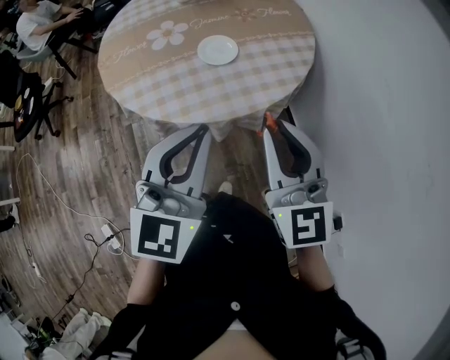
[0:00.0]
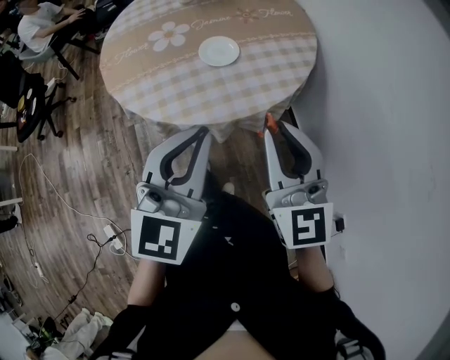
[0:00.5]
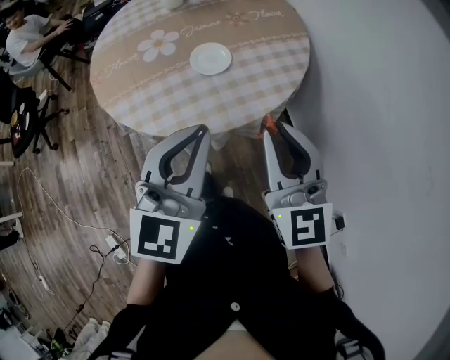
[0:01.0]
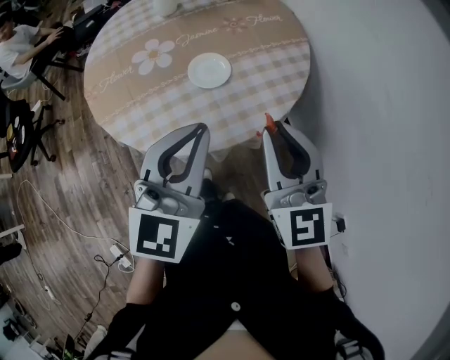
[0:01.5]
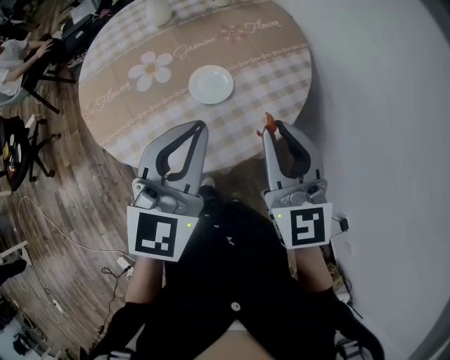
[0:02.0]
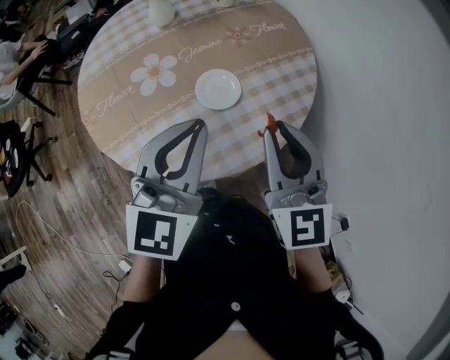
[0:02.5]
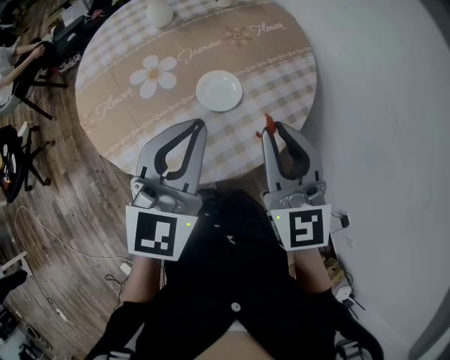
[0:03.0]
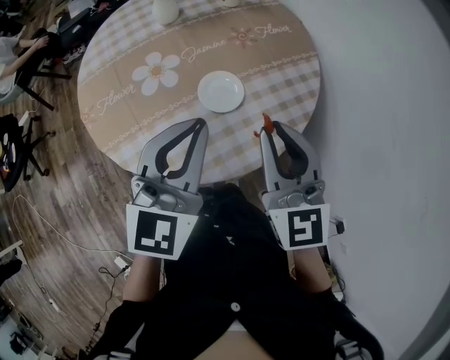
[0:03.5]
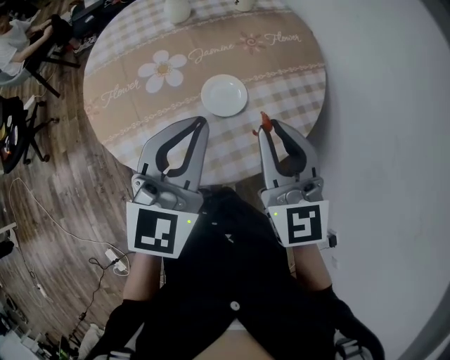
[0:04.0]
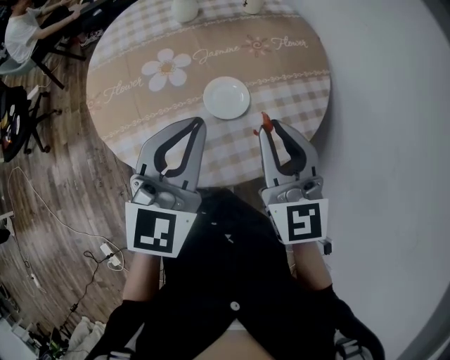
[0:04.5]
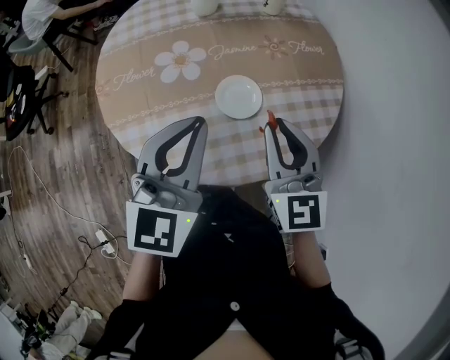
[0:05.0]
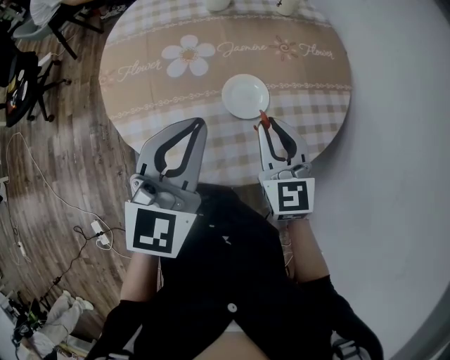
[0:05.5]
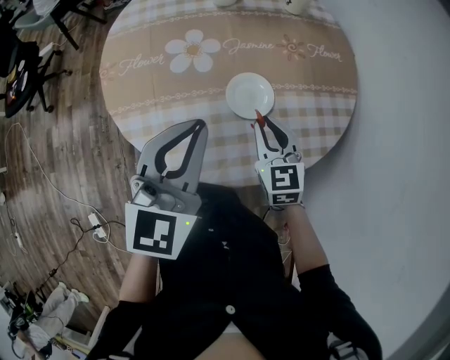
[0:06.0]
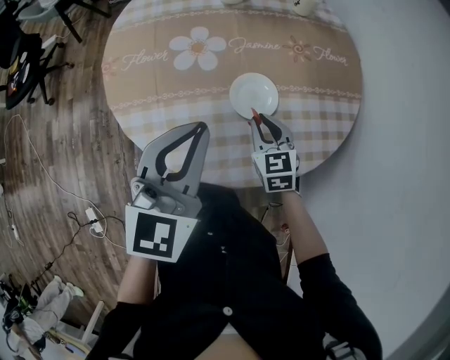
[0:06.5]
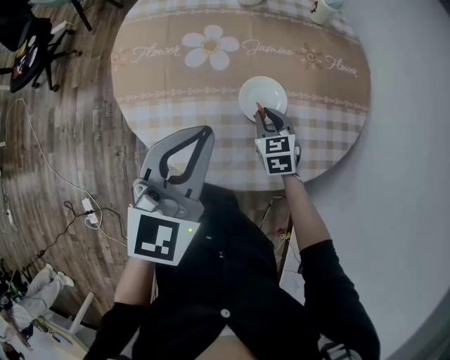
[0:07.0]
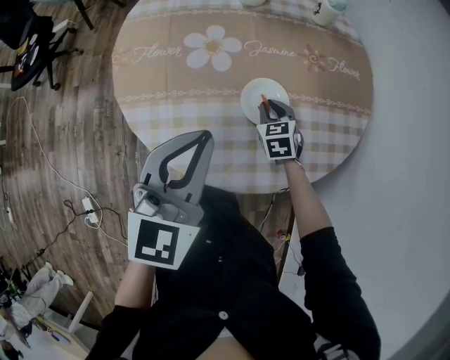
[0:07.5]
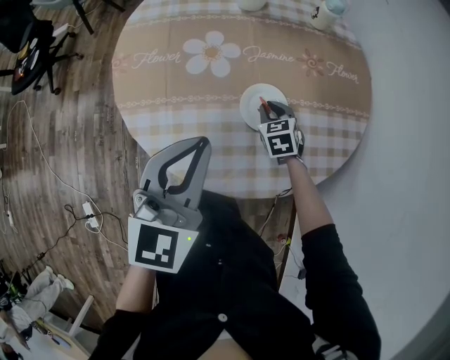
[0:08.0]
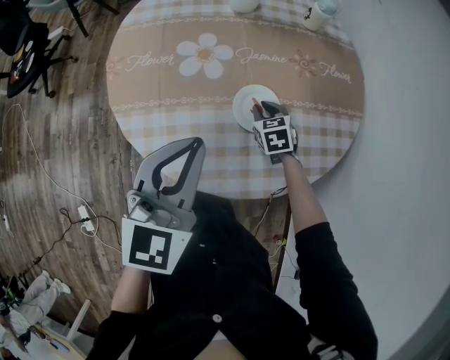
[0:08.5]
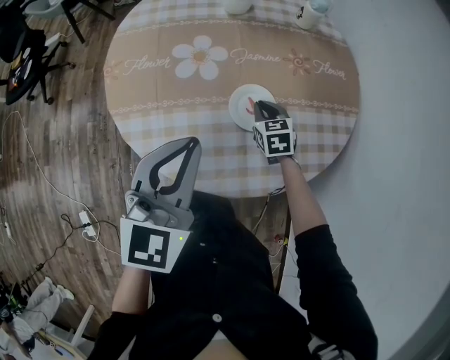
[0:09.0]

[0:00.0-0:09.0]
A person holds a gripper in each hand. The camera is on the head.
0:00.0 to 0:02.0: Both grippers travel together forward, roughly 15 cm.
0:02.0 to 0:04.5: The grippers both shift forward by about 5 cm.
0:04.5 to 0:07.0: The right gripper goes about 30 cm downward, and tilts its fingers about 30 degrees downward, while the left gripper is displaced to the left by about 5 cm.
0:07.0 to 0:09.0: The right gripper heads forward, covering roughly 5 cm.

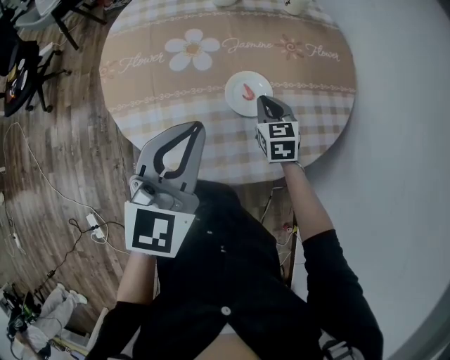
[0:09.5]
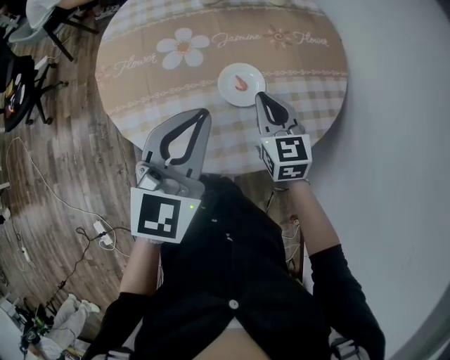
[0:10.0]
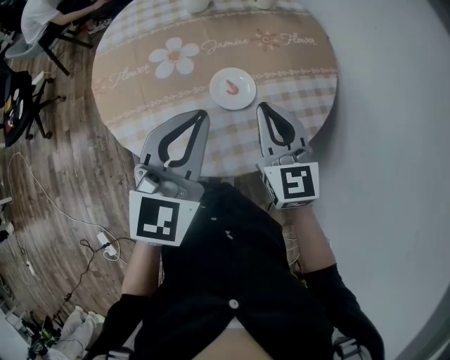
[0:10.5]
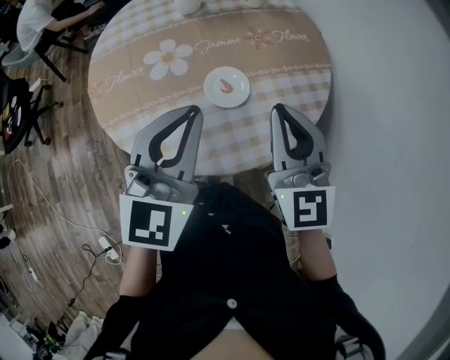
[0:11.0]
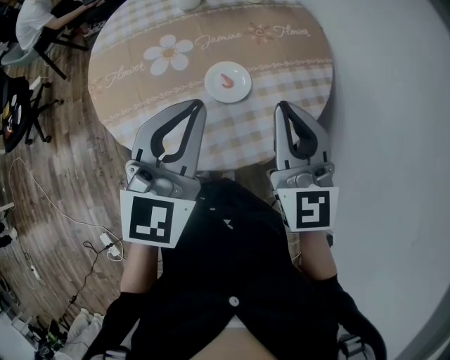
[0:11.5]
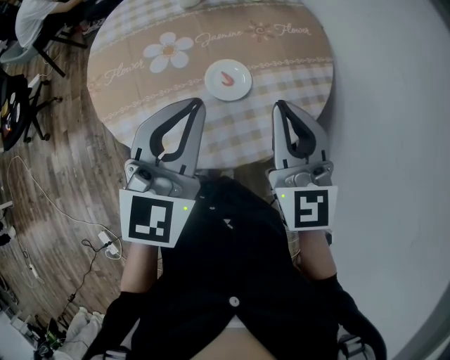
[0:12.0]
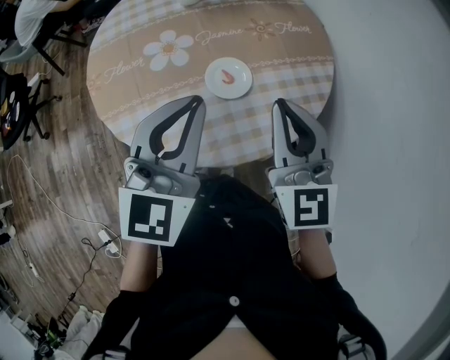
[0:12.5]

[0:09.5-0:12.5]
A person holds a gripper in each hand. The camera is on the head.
0:09.5 to 0:11.0: The left gripper shifts by approximately 5 cm. The right gripper shifts some 30 cm upward and backward, and tilts its fingers about 30 degrees upward.
0:11.0 to 0:12.5: The two grippers keep their place.

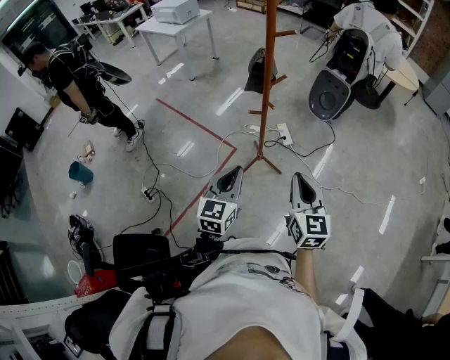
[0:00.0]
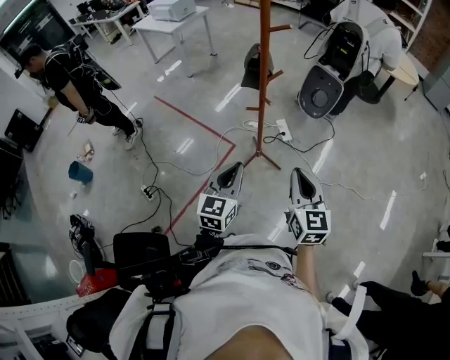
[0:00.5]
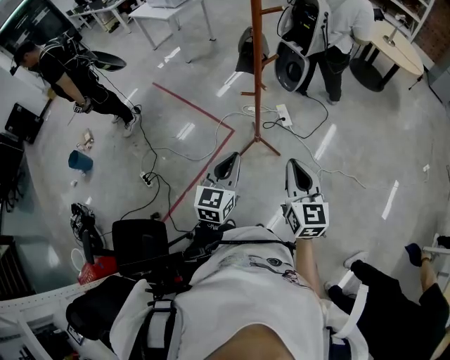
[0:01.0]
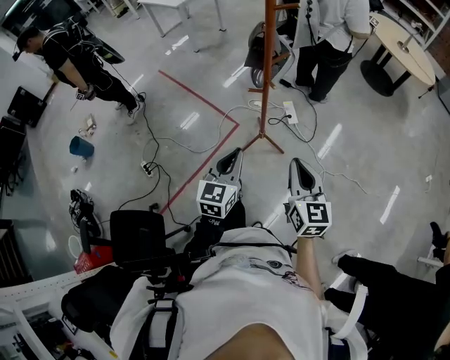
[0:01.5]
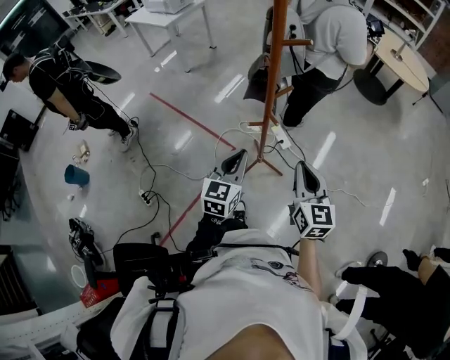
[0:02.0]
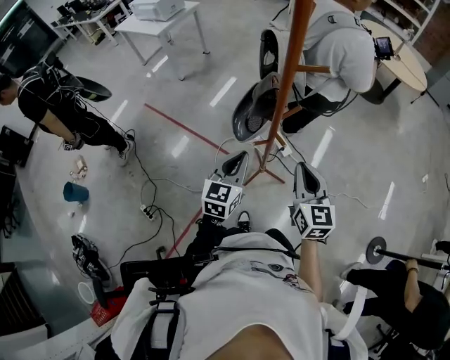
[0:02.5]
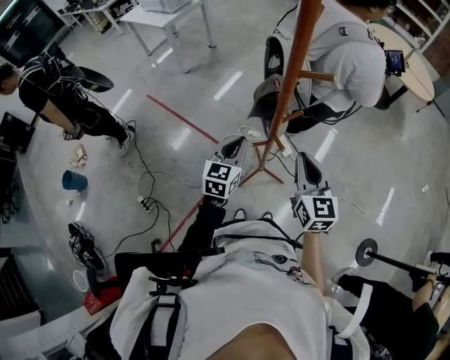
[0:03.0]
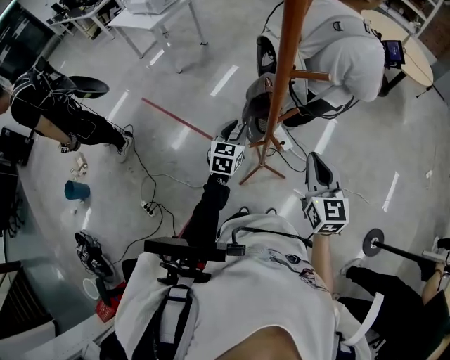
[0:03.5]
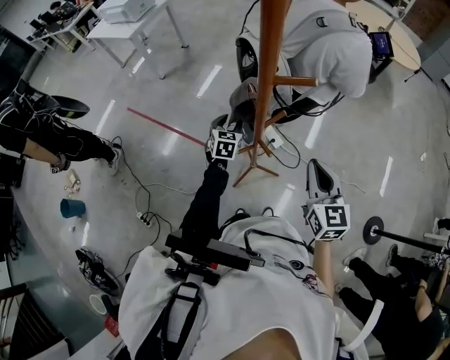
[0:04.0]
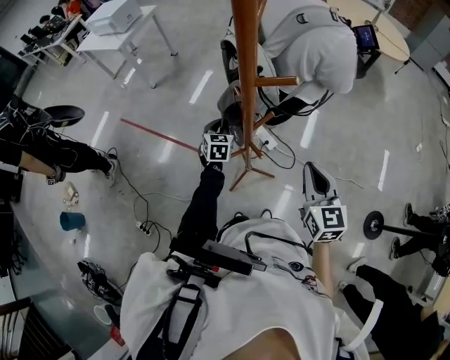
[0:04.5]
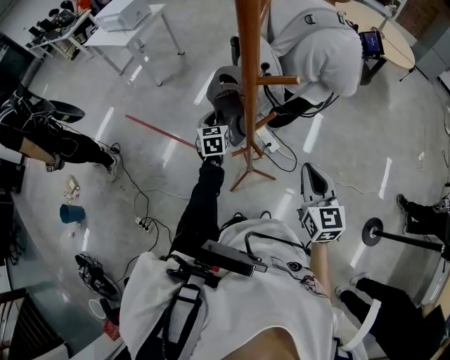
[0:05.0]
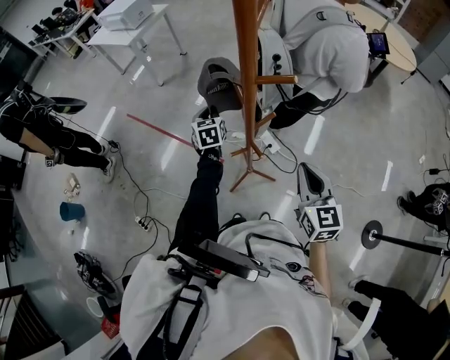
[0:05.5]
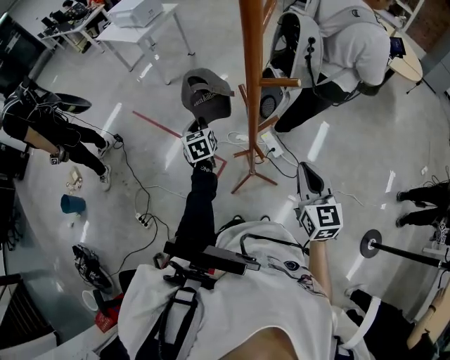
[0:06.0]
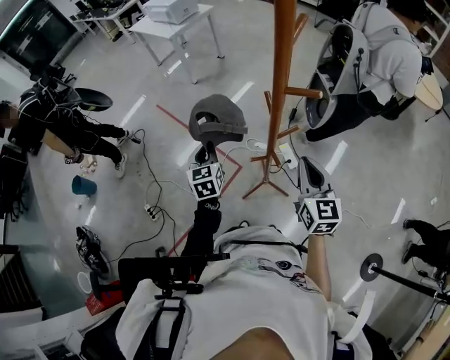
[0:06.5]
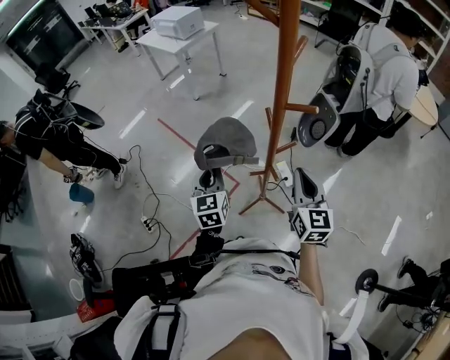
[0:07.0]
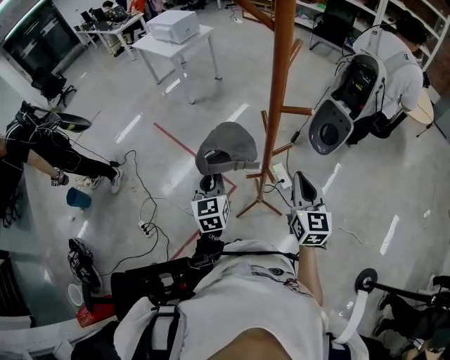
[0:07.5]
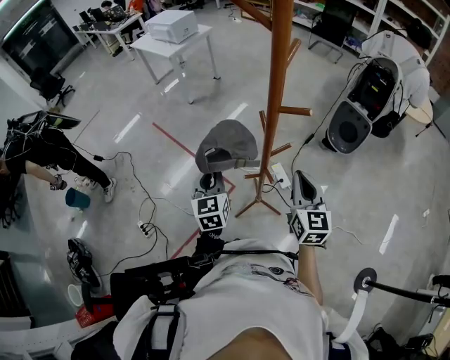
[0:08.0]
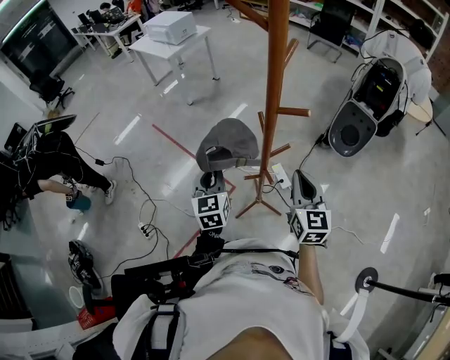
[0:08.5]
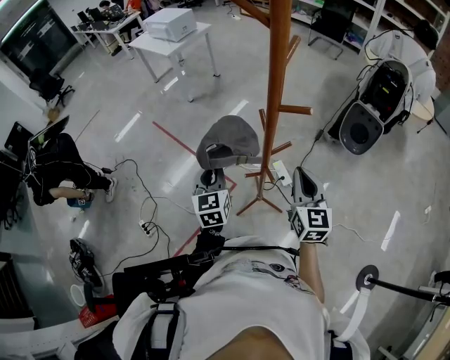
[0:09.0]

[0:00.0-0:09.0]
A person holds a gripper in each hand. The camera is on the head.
0:00.0 to 0:02.0: The two grippers go approximately 20 cm forward.
0:02.0 to 0:04.5: The right gripper travels forward by roughly 15 cm. Meanwhile the left gripper goes roughly 35 cm forward and downward, changes its angle by some 20 degrees, and opens and closes again.
0:04.5 to 0:07.0: The right gripper is displaced to the left by roughly 5 cm; the left gripper travels upward, backward and to the left by approximately 30 cm, and turns by approximately 30 degrees.
0:07.0 to 0:09.0: The grippers stay close to where they were, moving slightly.

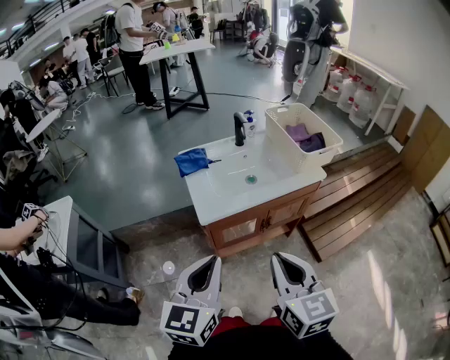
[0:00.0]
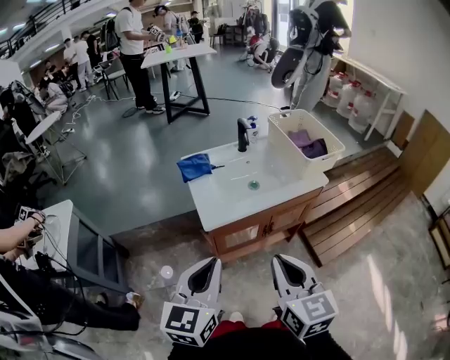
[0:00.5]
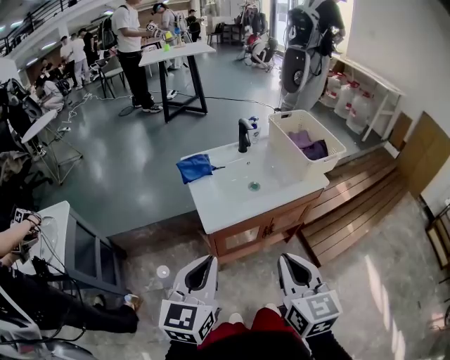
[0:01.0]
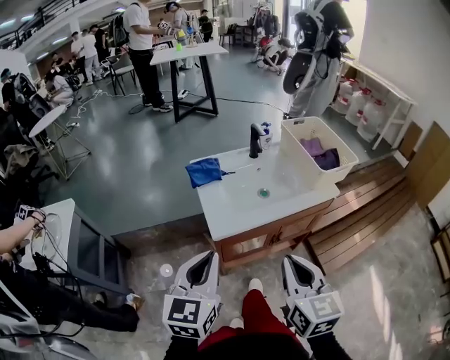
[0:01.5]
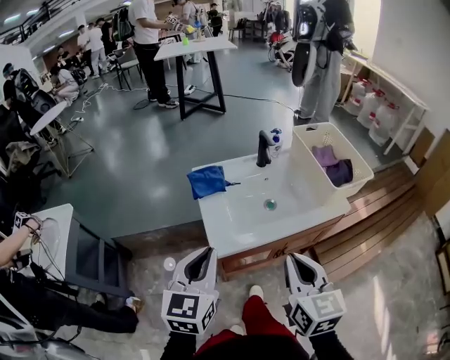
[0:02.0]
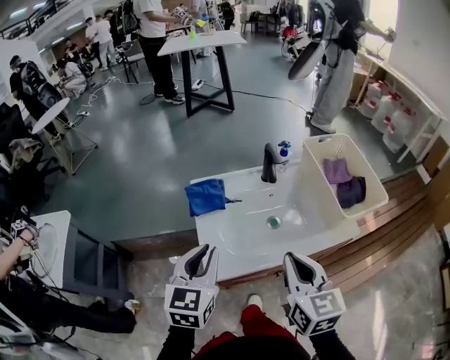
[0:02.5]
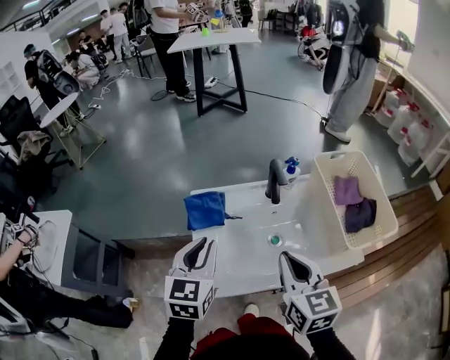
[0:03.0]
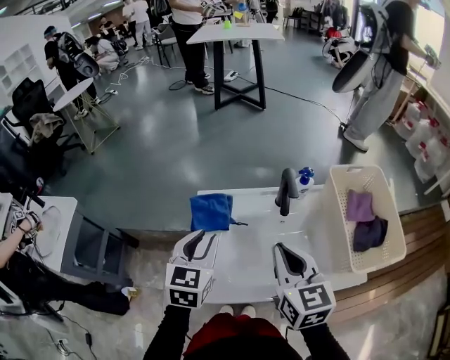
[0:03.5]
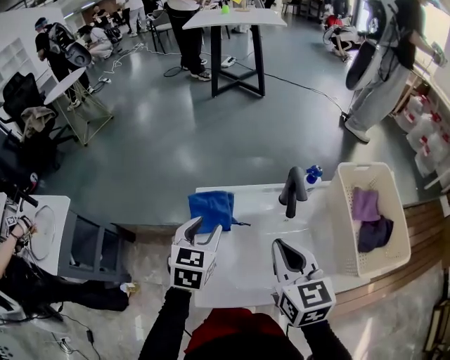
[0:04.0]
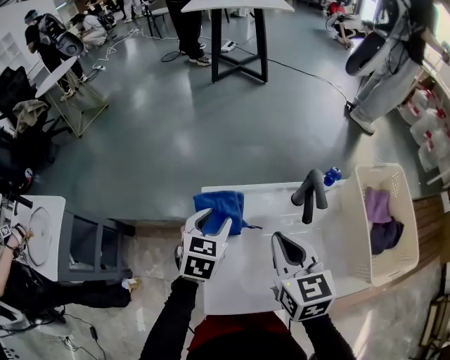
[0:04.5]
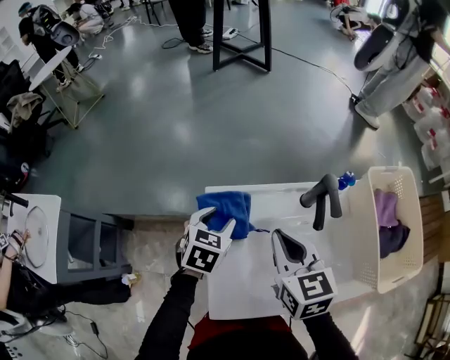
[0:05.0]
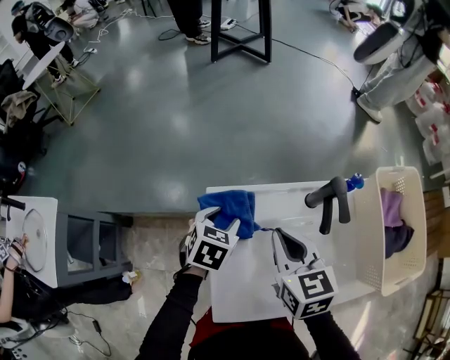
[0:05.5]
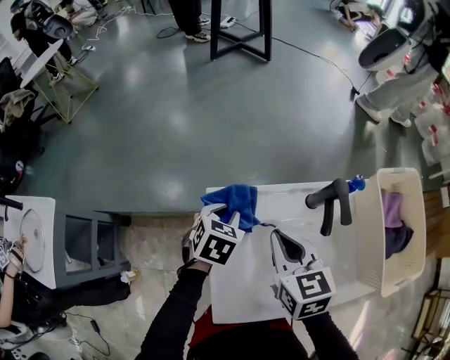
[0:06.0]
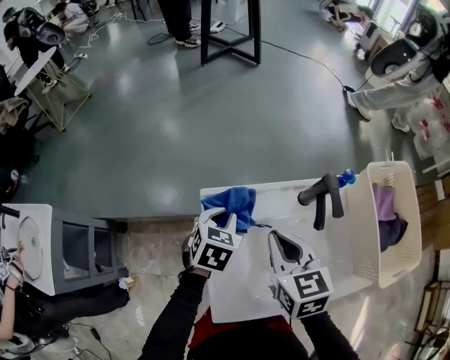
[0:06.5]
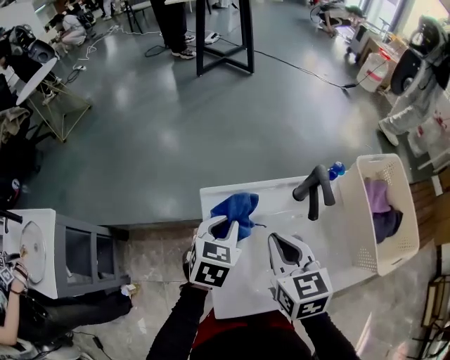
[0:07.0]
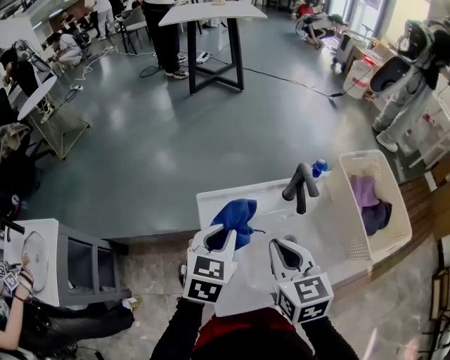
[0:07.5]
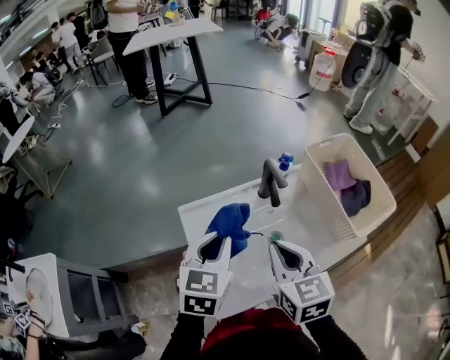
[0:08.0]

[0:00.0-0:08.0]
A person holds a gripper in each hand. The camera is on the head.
0:00.0 to 0:02.0: Both grippers travel together forward, approximately 15 cm.
0:02.0 to 0:04.0: The two grippers go roughly 30 cm forward. The left gripper changes its angle by about 20 degrees, and opens.
0:04.0 to 0:06.0: The left gripper heads downward and forward, covering approximately 15 cm, and changes its angle by approximately 20 degrees. The right gripper shifts about 15 cm forward, downward and to the left.
0:06.0 to 0:08.0: The right gripper moves backward, upward and to the right, approximately 15 cm. The left gripper goes about 20 cm upward and backward, and changes its angle by roughly 30 degrees.
